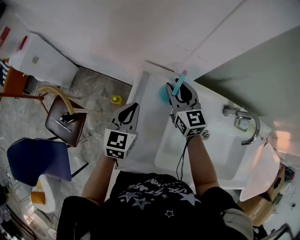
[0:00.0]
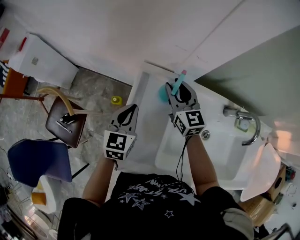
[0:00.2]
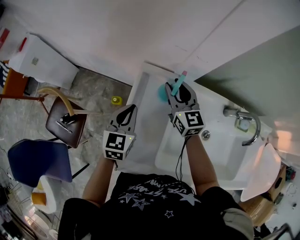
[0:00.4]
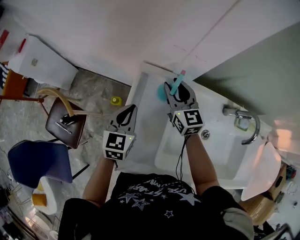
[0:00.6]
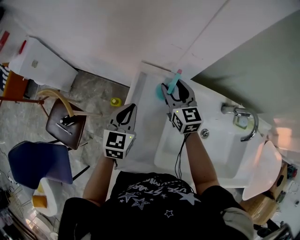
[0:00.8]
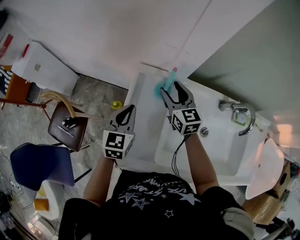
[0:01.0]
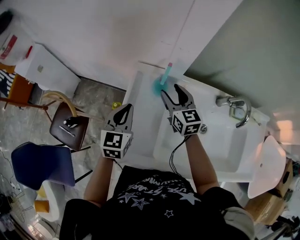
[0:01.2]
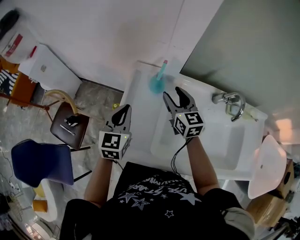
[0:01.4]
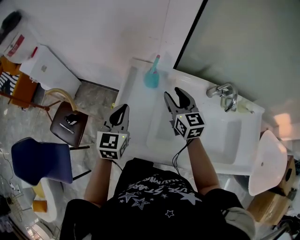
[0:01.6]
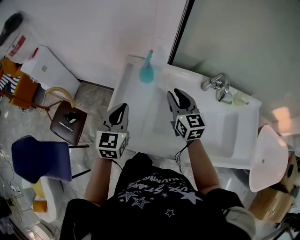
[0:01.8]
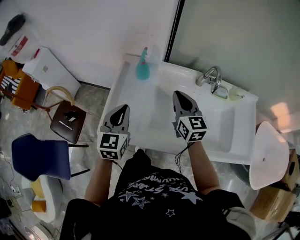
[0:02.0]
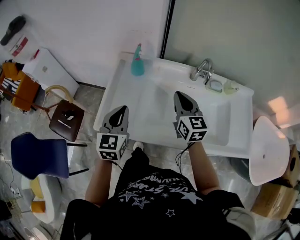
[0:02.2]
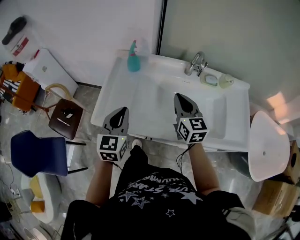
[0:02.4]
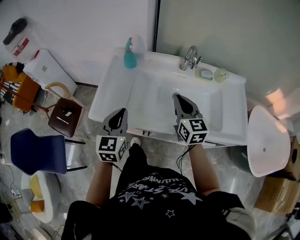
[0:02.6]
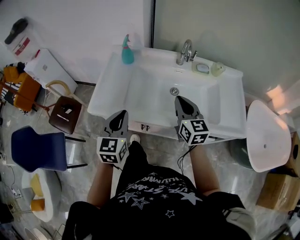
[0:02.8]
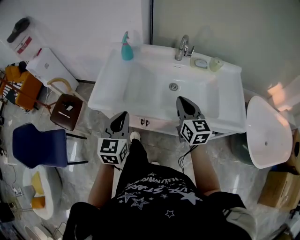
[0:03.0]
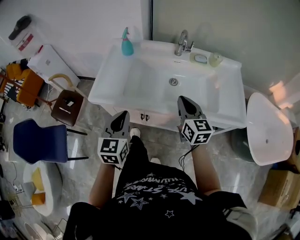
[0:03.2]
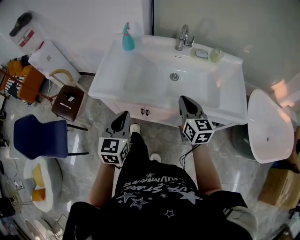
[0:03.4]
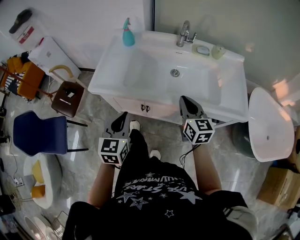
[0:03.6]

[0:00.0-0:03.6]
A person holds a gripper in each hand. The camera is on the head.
0:00.0 to 0:01.8: The right gripper shifts roughly 20 cm backward and to the right, and opens, then closes once more. The left gripper shifts about 20 cm backward and upward.
0:01.8 to 0:03.6: The left gripper goes some 30 cm backward, while the right gripper goes approximately 35 cm backward and to the right, and closes.

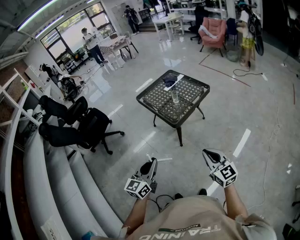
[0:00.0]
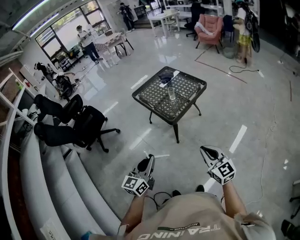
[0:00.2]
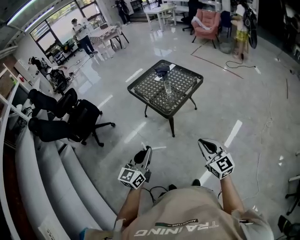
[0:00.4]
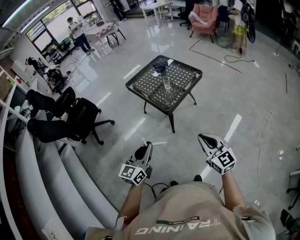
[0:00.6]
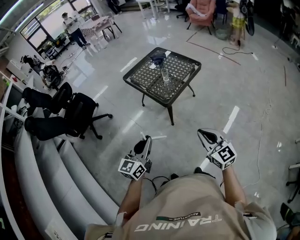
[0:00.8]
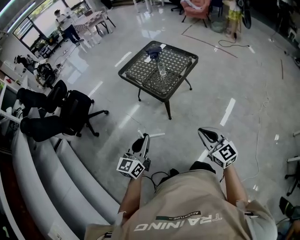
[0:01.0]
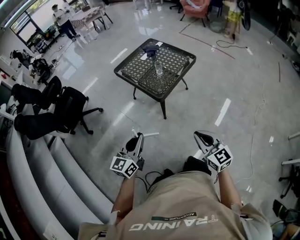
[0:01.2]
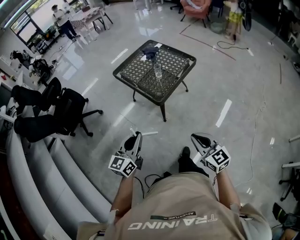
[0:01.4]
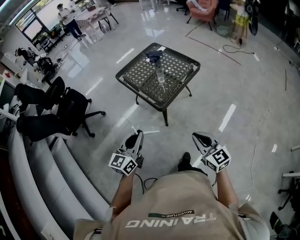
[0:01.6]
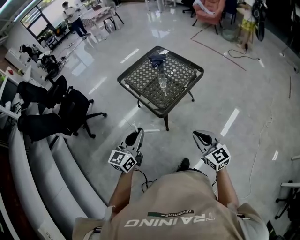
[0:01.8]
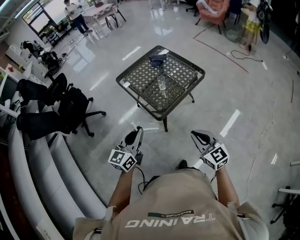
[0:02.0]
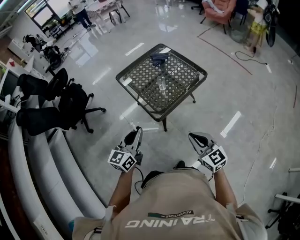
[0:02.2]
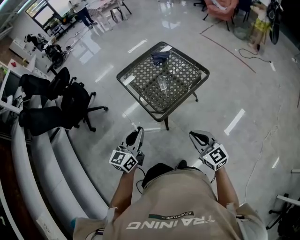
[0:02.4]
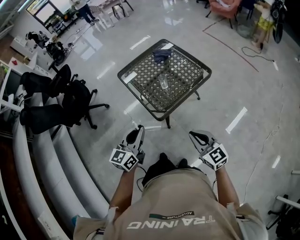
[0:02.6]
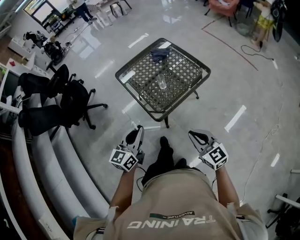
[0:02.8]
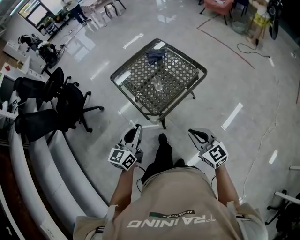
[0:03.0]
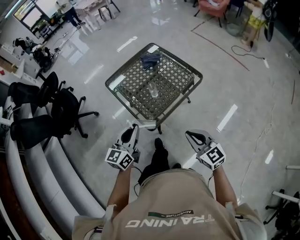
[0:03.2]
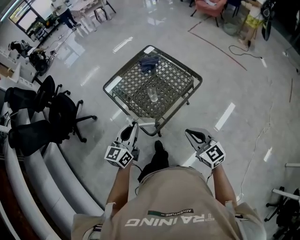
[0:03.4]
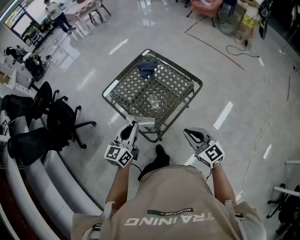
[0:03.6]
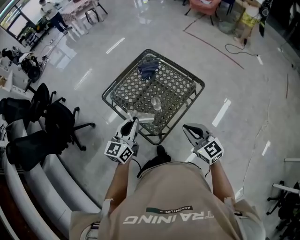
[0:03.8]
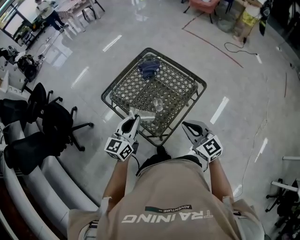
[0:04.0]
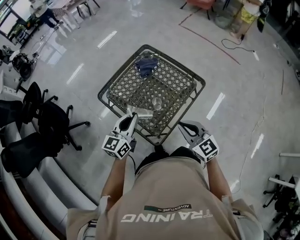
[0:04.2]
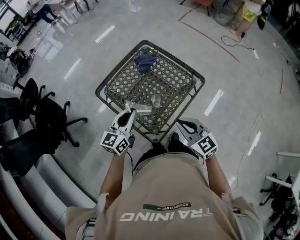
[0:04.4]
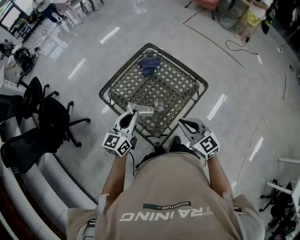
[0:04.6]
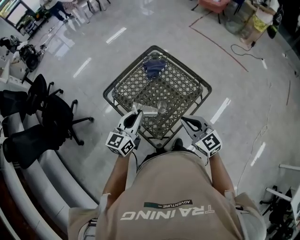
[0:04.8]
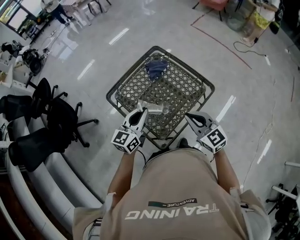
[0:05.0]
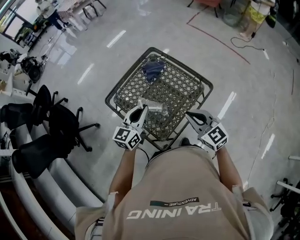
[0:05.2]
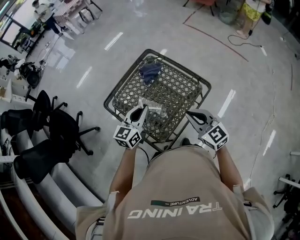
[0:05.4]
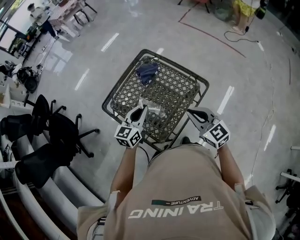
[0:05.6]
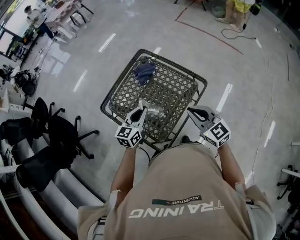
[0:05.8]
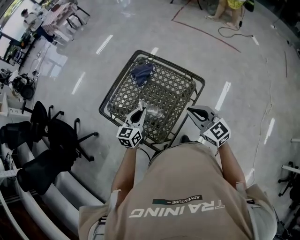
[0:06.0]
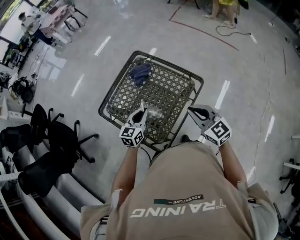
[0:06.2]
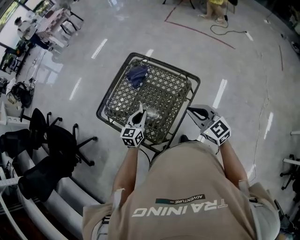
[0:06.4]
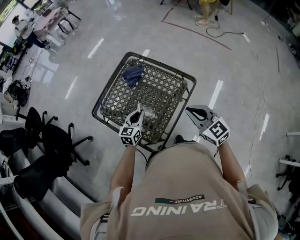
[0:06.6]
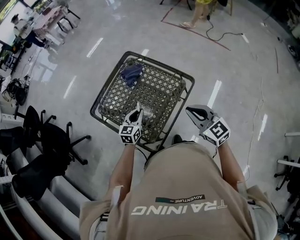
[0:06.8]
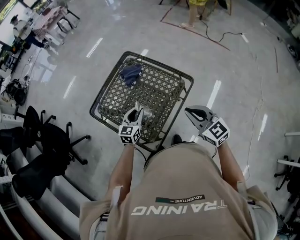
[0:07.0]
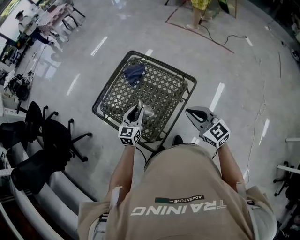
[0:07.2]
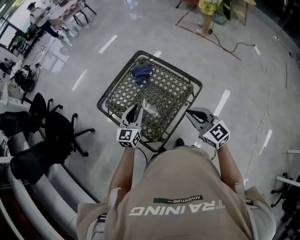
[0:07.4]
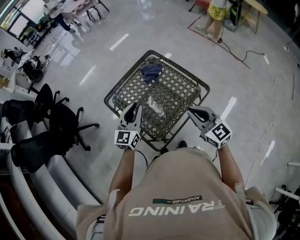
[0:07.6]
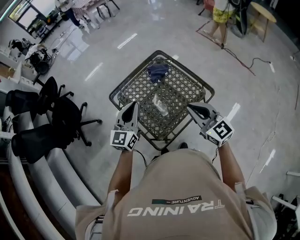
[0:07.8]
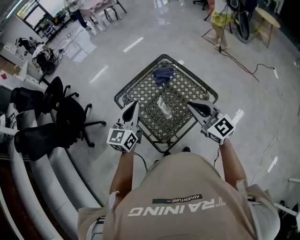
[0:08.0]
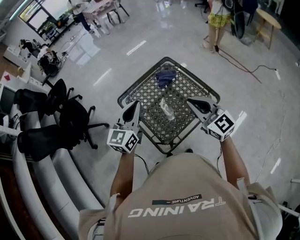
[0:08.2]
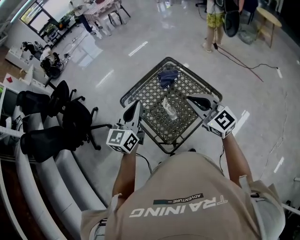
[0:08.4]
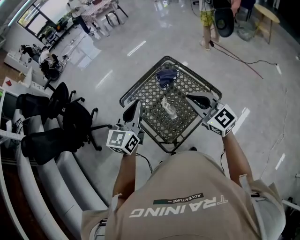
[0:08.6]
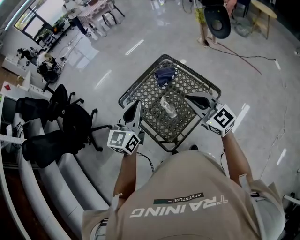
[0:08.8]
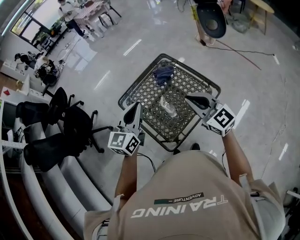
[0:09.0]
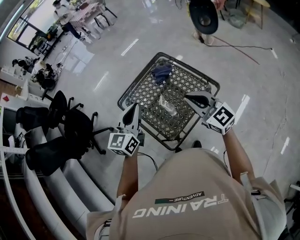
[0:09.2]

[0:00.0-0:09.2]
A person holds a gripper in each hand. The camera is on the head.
0:00.0 to 0:01.6: Both grippers move forward, approximately 15 cm.
0:01.6 to 0:03.0: Both grippers travel together forward and to the right, about 20 cm.
0:03.0 to 0:04.6: Both grippers travel together forward, approximately 25 cm.
0:04.6 to 0:06.2: The right gripper moves to the right and forward, about 10 cm. The left gripper goes approximately 15 cm downward, forward and to the right.
0:06.2 to 0:07.6: The left gripper goes approximately 10 cm upward, and rotates roughly 30 degrees.
0:07.6 to 0:09.2: The left gripper is displaced upward by approximately 10 cm, while the right gripper changes place by about 10 cm.

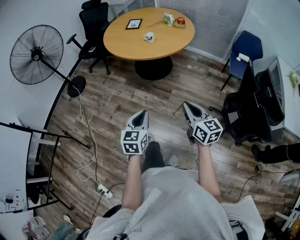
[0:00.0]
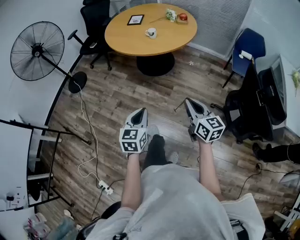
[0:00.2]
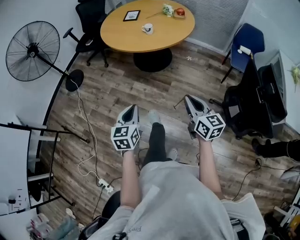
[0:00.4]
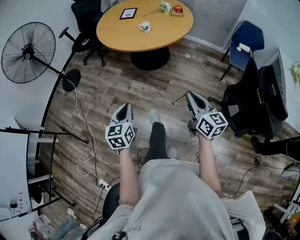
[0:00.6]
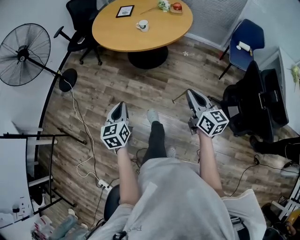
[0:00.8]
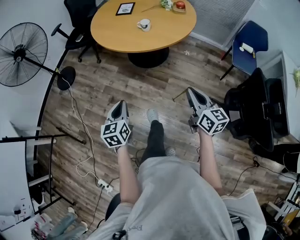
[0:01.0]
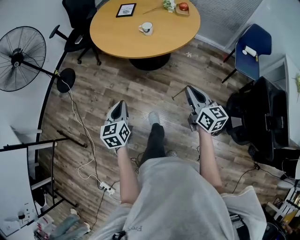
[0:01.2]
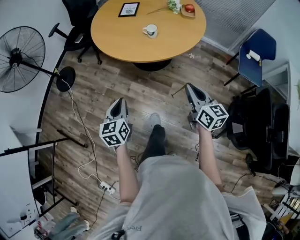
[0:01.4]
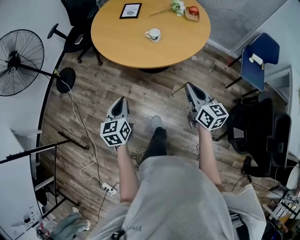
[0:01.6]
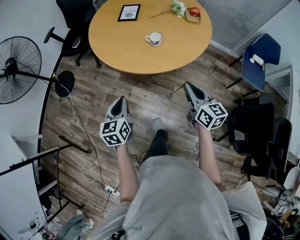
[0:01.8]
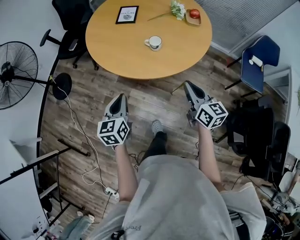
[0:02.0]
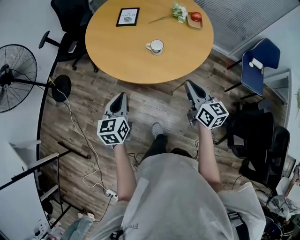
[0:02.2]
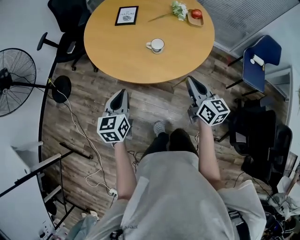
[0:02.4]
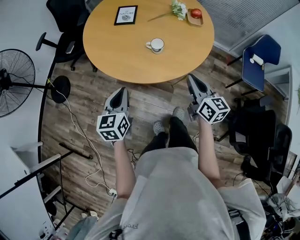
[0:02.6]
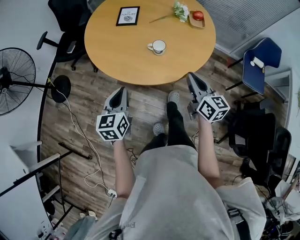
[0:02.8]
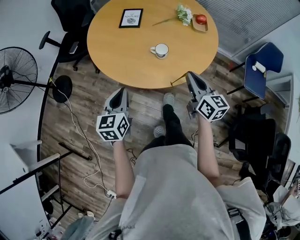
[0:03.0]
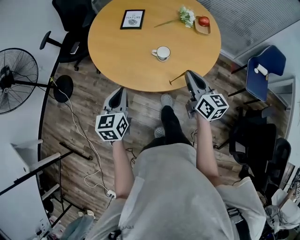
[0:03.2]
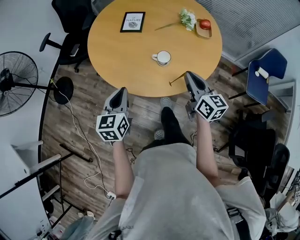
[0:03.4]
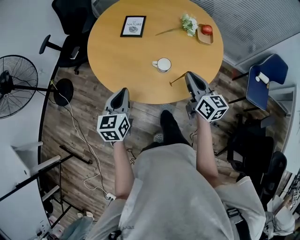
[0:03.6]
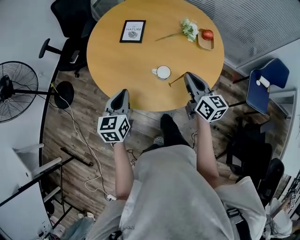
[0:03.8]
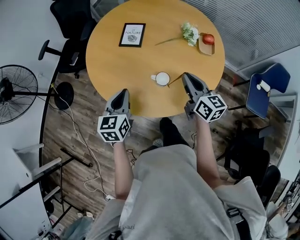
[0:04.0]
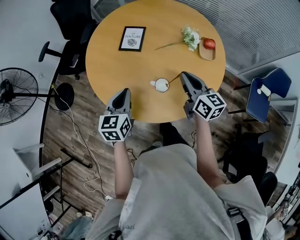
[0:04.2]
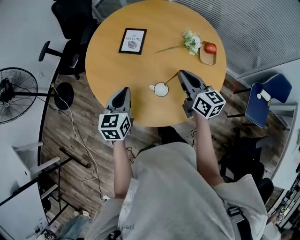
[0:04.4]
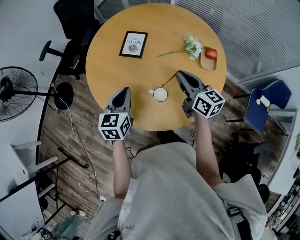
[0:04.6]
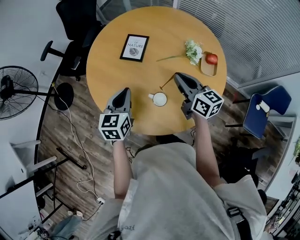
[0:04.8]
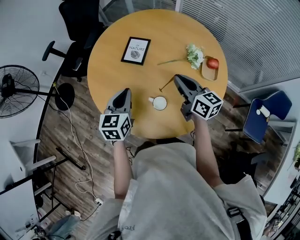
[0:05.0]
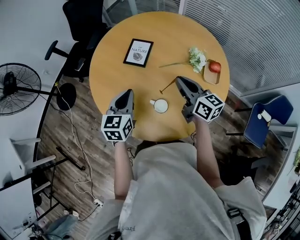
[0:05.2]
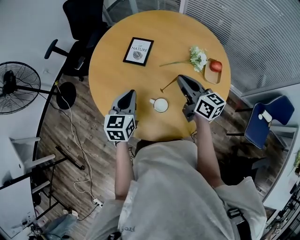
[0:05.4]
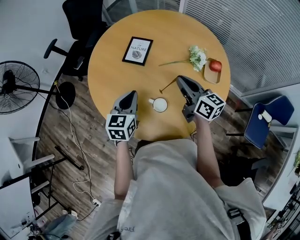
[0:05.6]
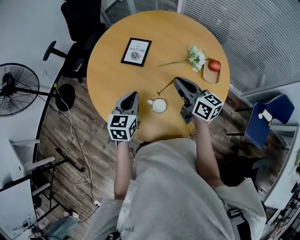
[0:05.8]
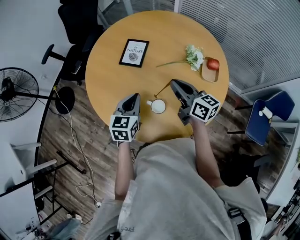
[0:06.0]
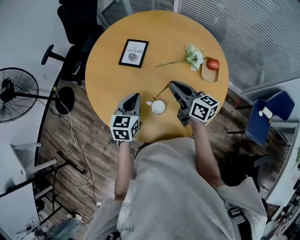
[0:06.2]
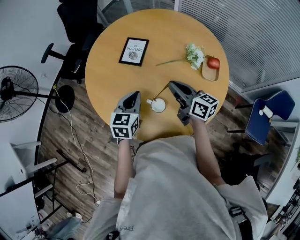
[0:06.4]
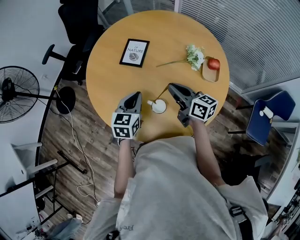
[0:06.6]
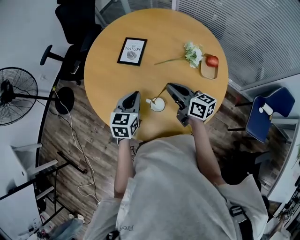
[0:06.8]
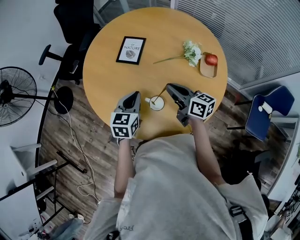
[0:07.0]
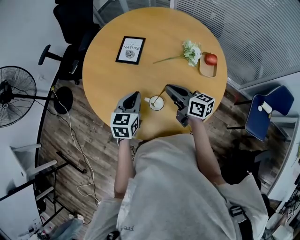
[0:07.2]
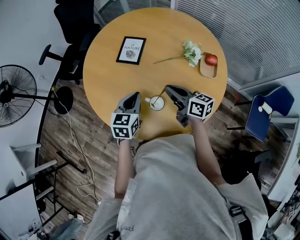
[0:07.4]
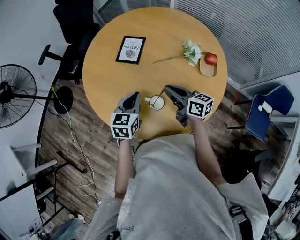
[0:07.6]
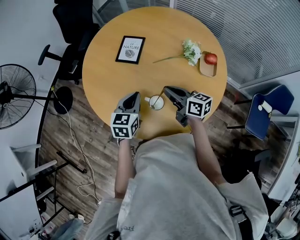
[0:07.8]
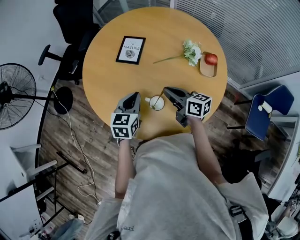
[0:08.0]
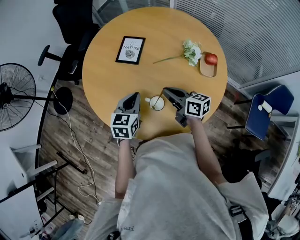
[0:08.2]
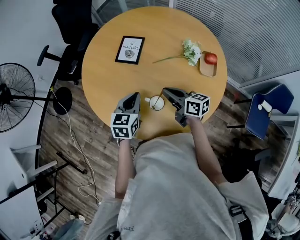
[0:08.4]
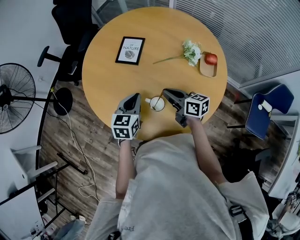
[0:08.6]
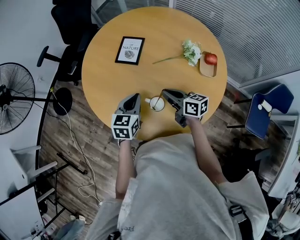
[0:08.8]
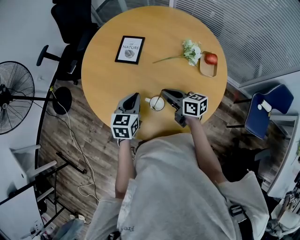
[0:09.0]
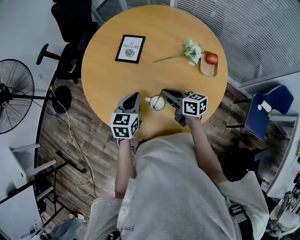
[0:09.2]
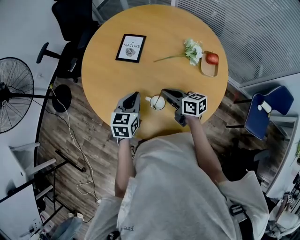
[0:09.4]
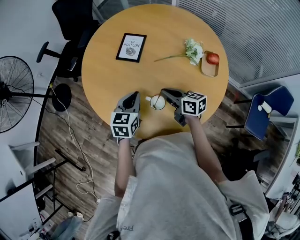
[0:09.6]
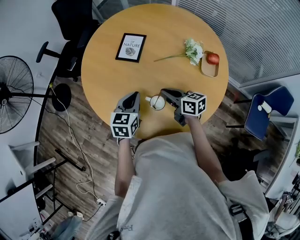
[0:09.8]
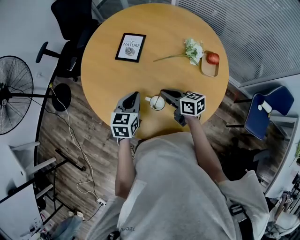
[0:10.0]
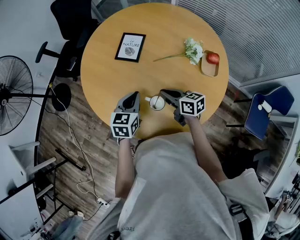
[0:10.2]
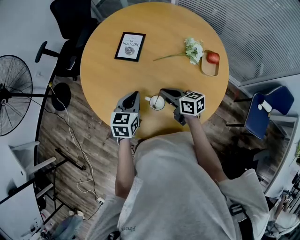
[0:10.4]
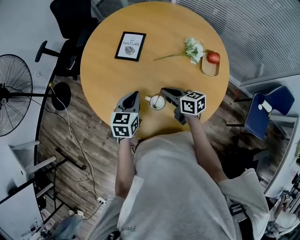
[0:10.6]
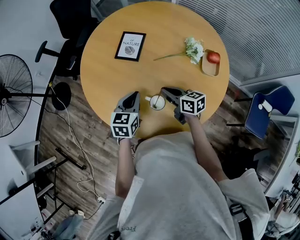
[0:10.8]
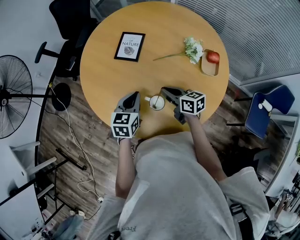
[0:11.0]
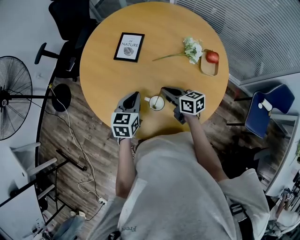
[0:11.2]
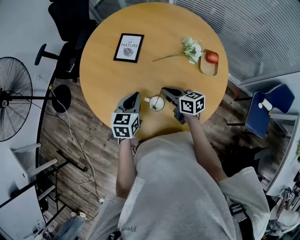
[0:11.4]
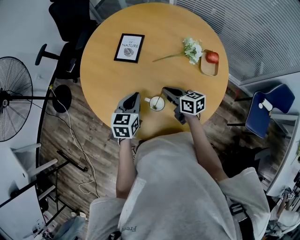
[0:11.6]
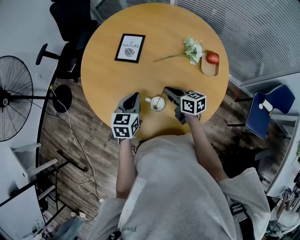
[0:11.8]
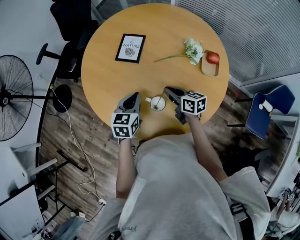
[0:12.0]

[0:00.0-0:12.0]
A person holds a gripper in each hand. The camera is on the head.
0:00.0 to 0:01.6: The grippers both shift forward by some 35 cm.
0:01.6 to 0:03.0: The grippers both shift forward by about 20 cm.
0:03.0 to 0:04.4: Both grippers travel together forward, about 25 cm.
0:04.4 to 0:06.0: The left gripper moves to the right and downward, some 10 cm, while the right gripper is displaced forward by some 5 cm.
0:06.0 to 0:07.6: The right gripper goes roughly 5 cm downward.
0:07.6 to 0:09.0: The grippers make only small movements.
0:09.0 to 0:12.0: There are only small adjustments of the grippers.
